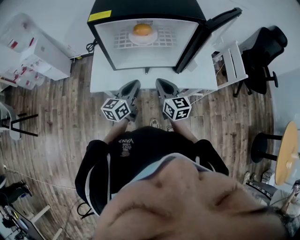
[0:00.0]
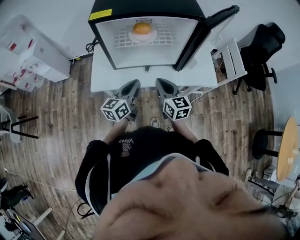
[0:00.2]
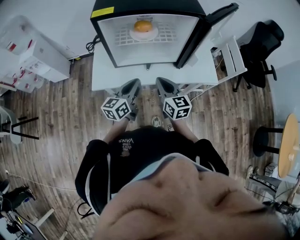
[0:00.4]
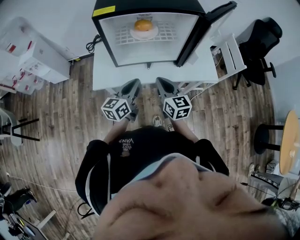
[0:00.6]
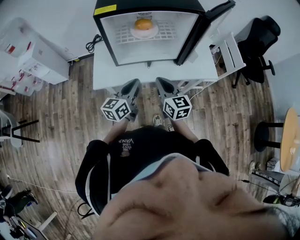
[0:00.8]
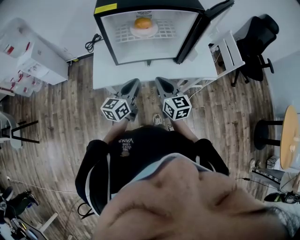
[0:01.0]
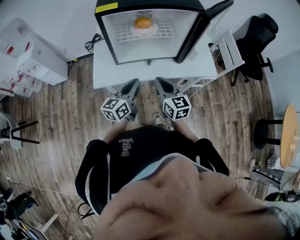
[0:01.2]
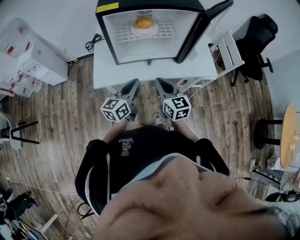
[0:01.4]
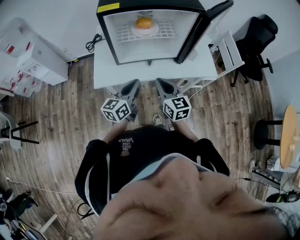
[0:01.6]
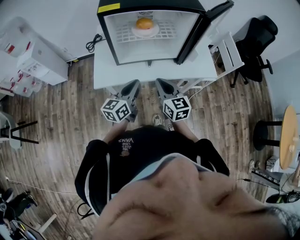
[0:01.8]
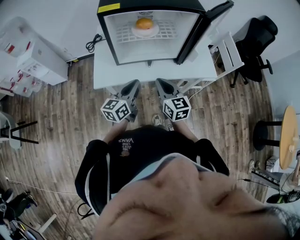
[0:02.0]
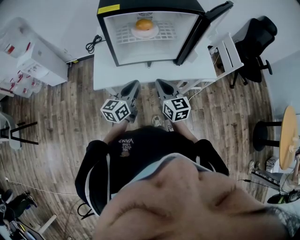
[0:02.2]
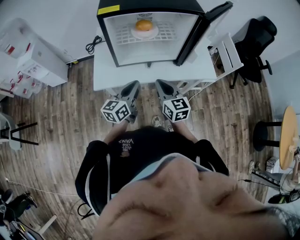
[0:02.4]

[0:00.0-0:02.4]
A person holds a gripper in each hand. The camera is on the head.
0:00.0 to 0:01.2: Both grippers travel together backward, about 5 cm.
0:01.2 to 0:02.4: Both grippers stay put.

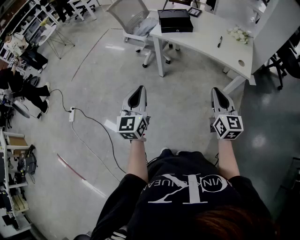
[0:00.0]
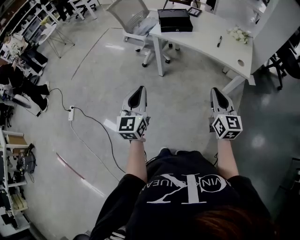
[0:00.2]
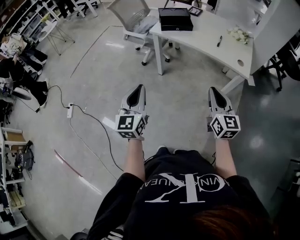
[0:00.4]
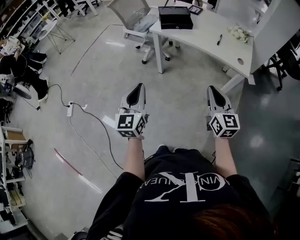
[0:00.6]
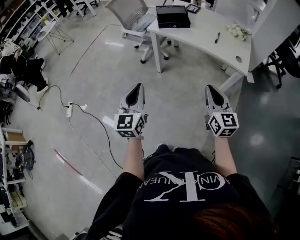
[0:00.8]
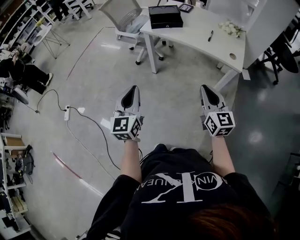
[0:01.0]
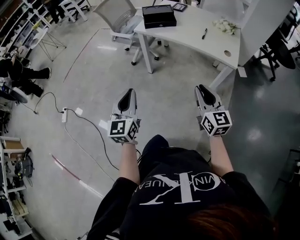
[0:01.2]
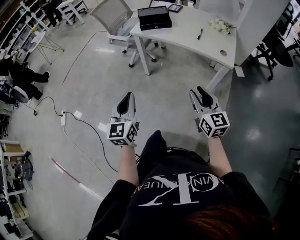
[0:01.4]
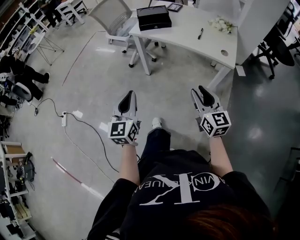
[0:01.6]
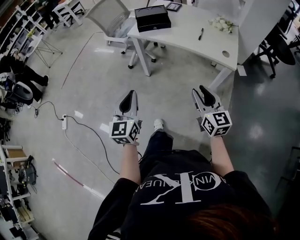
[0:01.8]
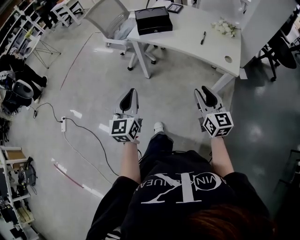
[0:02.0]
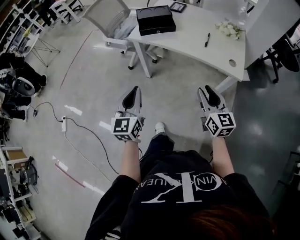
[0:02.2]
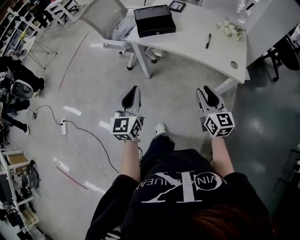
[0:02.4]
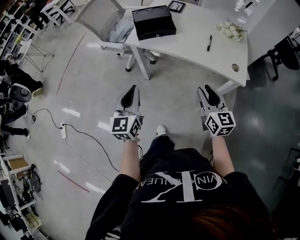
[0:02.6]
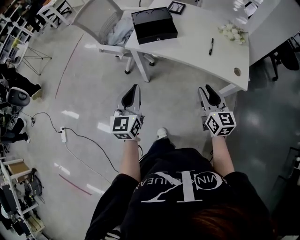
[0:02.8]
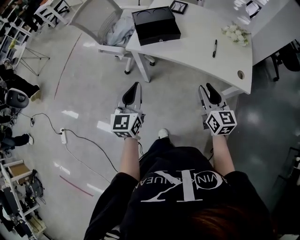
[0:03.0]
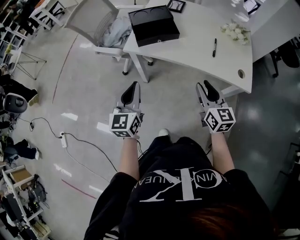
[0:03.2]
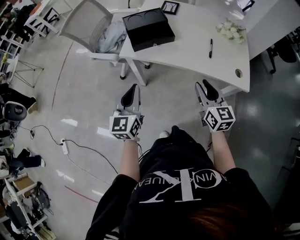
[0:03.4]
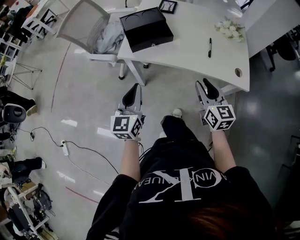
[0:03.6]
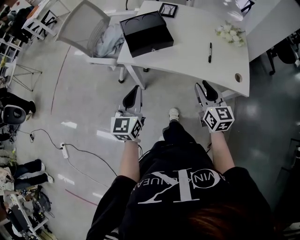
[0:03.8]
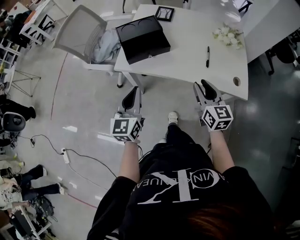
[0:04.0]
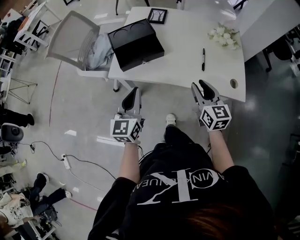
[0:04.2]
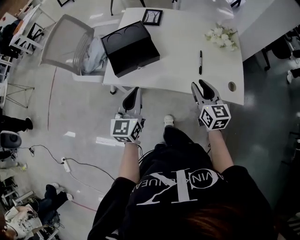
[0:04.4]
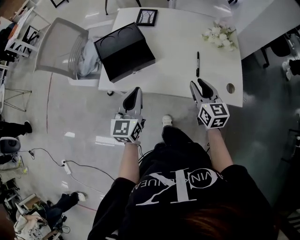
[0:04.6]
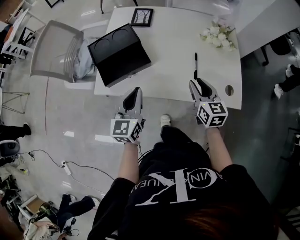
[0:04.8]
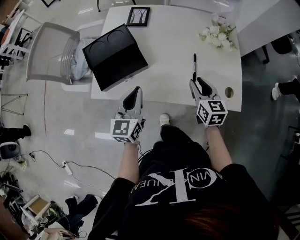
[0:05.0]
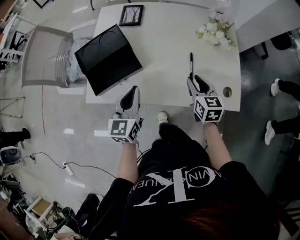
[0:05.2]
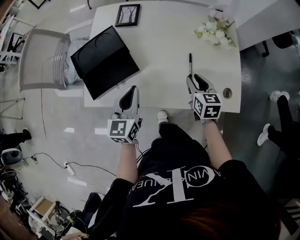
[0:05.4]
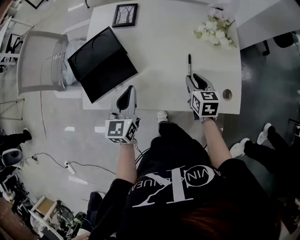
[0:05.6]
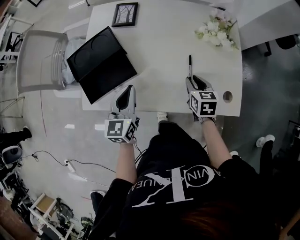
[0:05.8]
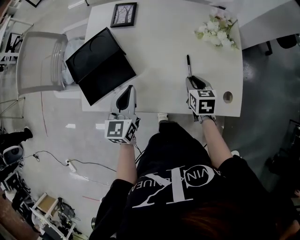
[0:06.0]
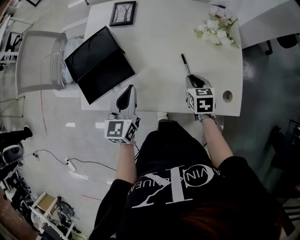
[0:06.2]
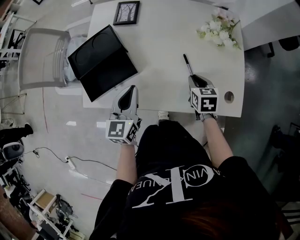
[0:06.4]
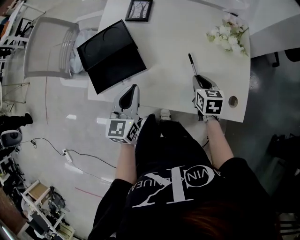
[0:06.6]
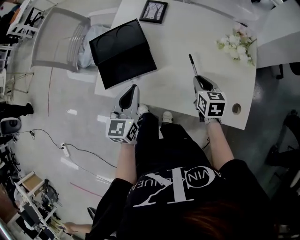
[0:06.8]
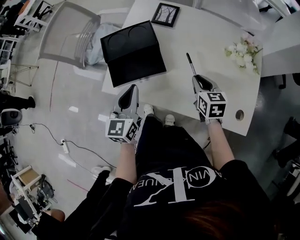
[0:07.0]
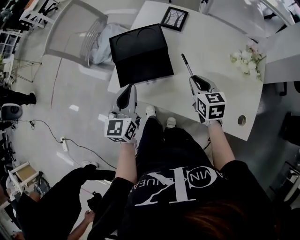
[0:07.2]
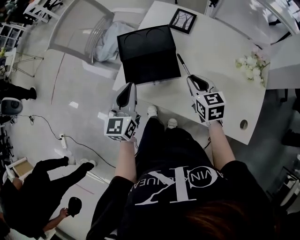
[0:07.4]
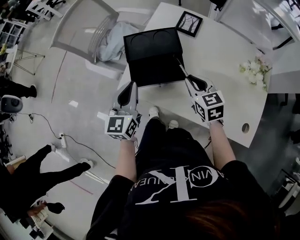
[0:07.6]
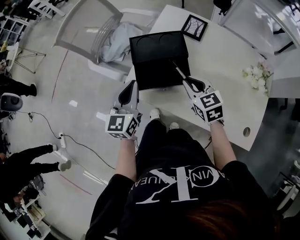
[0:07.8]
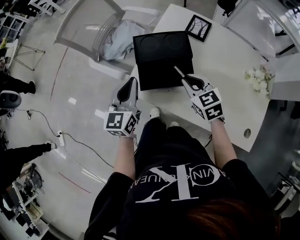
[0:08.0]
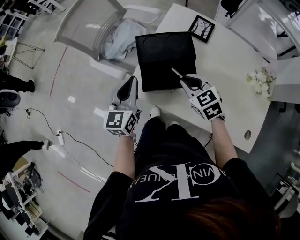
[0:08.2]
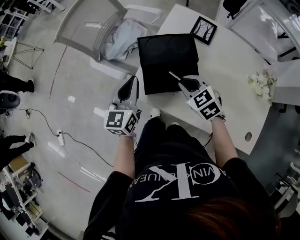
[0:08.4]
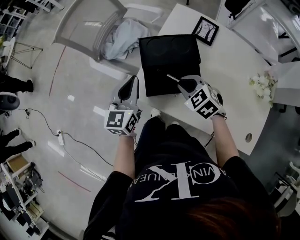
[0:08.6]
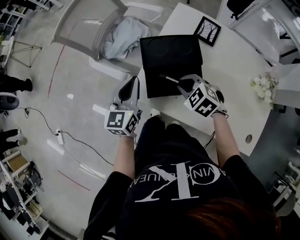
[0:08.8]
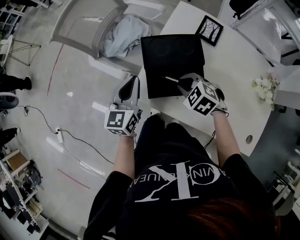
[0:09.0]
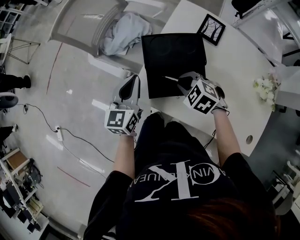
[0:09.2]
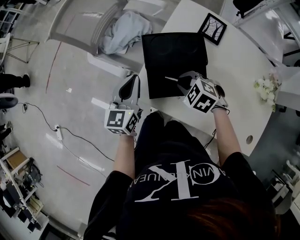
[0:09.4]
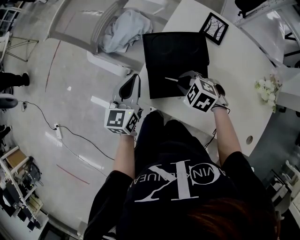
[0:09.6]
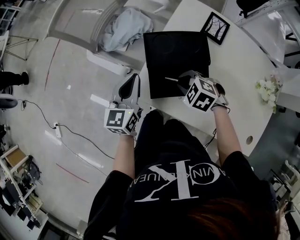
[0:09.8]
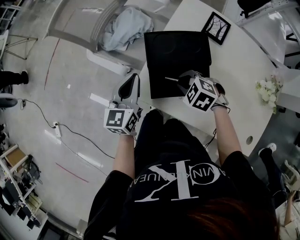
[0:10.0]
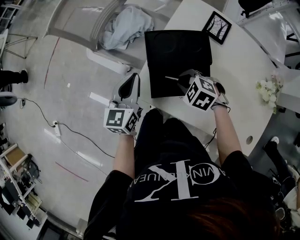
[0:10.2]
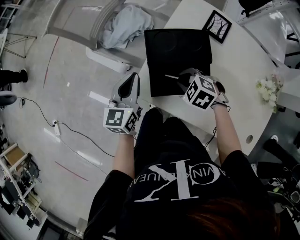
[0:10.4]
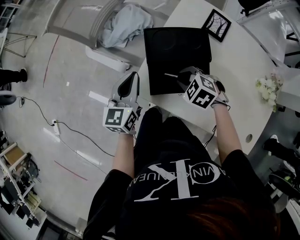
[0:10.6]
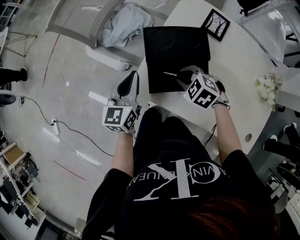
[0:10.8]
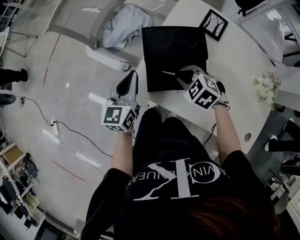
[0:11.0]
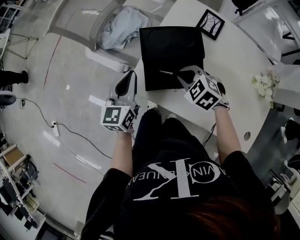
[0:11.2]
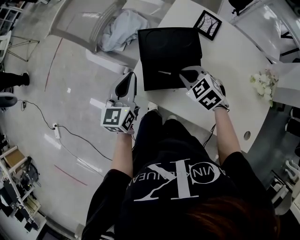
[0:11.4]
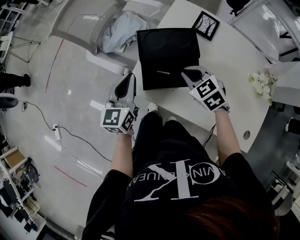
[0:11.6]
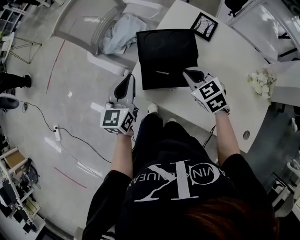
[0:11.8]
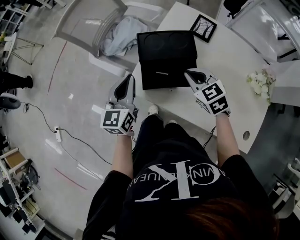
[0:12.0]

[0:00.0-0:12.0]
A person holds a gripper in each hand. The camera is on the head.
0:00.0 to 0:01.6: The right gripper shifts by about 5 cm, and opens up. Meanwhile the left gripper heads to the right, covering approximately 5 cm.
0:01.6 to 0:03.0: Both grippers travel together forward, some 30 cm.
0:03.0 to 0:04.4: The left gripper goes approximately 20 cm forward and to the right. Meanwhile the right gripper travels forward by approximately 15 cm.
0:04.4 to 0:06.0: The right gripper travels forward, downward and to the right by roughly 20 cm, and angles its fingers downward, by approximately 30 degrees. The left gripper shifts approximately 15 cm forward and to the right.
0:06.0 to 0:07.6: The right gripper ends up roughly 25 cm from where it was, and turns by some 40 degrees; the left gripper ends up roughly 20 cm from where it was, and rotates approximately 20 degrees.
0:07.6 to 0:09.0: The right gripper travels to the left, forward and downward by some 15 cm, and swivels roughly 50 degrees. Meanwhile the left gripper is displaced forward by approximately 10 cm.
0:09.0 to 0:10.4: The grippers stay close to where they were, moving slightly.
0:10.4 to 0:12.0: The left gripper changes place by some 5 cm; the right gripper shifts some 10 cm upward and to the right, and turns by about 40 degrees.

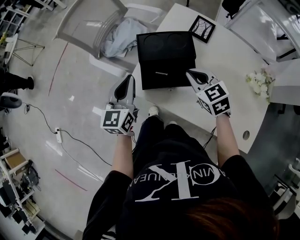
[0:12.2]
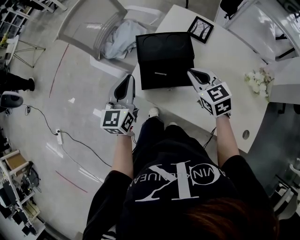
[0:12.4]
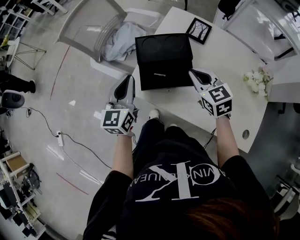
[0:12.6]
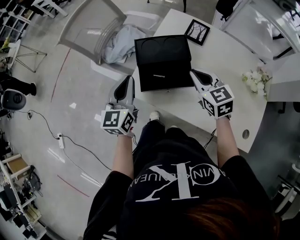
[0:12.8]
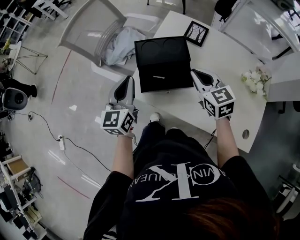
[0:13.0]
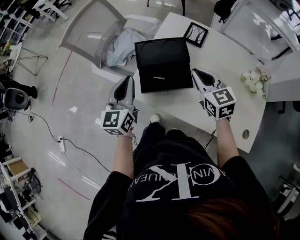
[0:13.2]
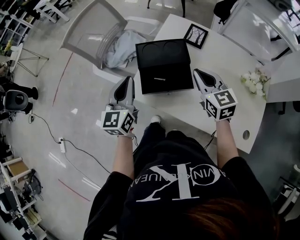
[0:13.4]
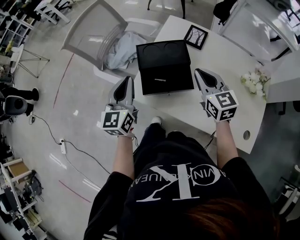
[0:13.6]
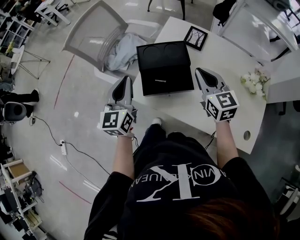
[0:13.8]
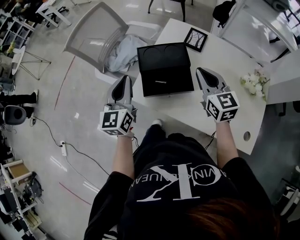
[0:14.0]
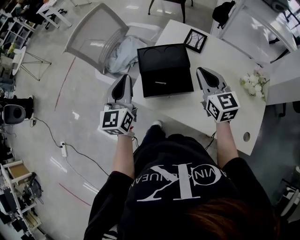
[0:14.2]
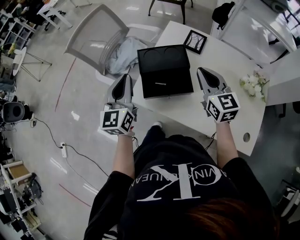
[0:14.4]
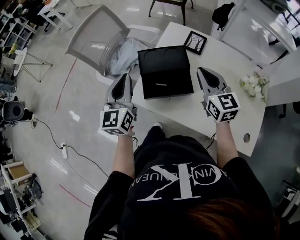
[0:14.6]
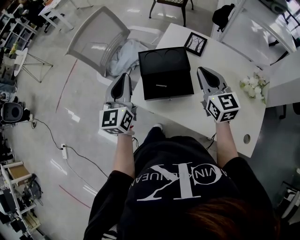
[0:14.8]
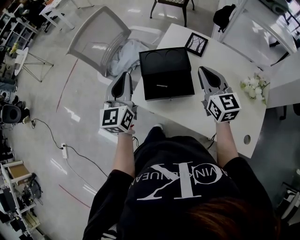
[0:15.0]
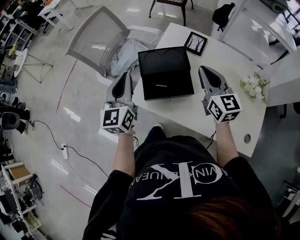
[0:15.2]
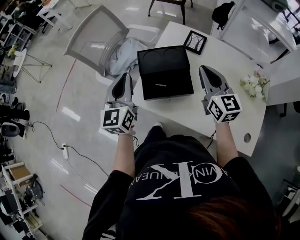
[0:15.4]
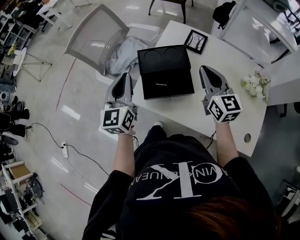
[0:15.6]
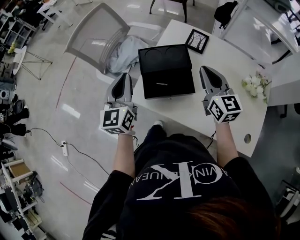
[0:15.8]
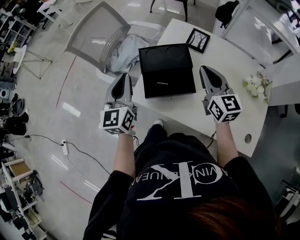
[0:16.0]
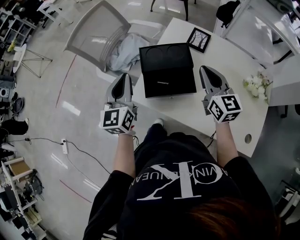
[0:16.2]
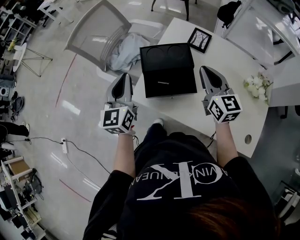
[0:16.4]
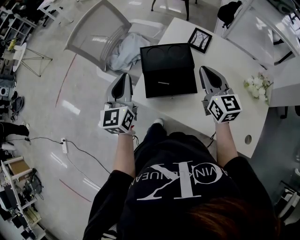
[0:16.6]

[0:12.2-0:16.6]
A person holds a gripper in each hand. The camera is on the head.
0:12.2 to 0:13.6: The right gripper is displaced upward by about 5 cm, and swivels roughly 20 degrees.
0:13.6 to 0:16.6: There are only small adjustments of the grippers.

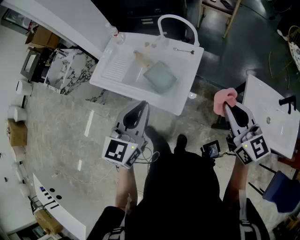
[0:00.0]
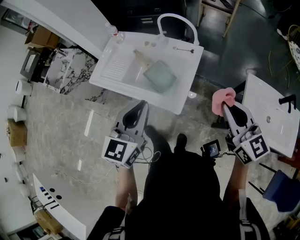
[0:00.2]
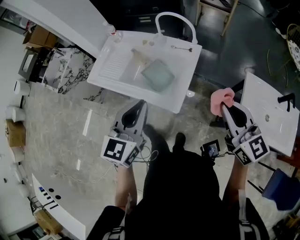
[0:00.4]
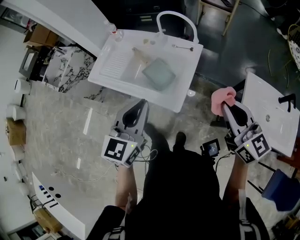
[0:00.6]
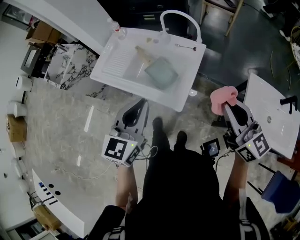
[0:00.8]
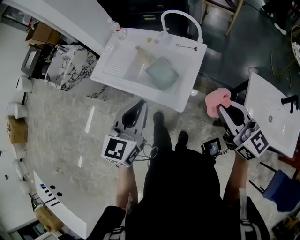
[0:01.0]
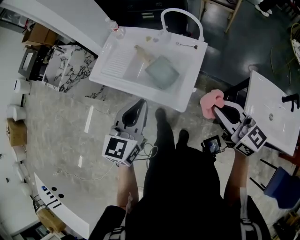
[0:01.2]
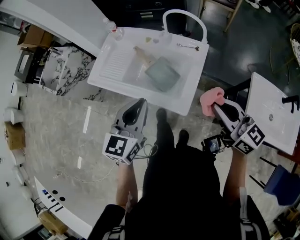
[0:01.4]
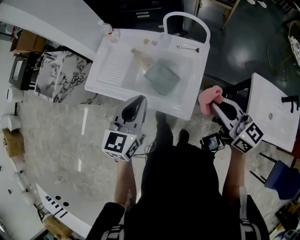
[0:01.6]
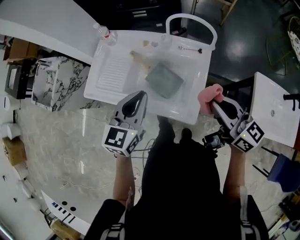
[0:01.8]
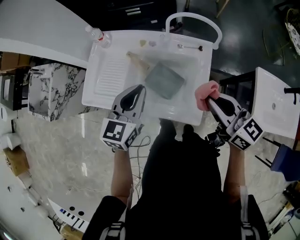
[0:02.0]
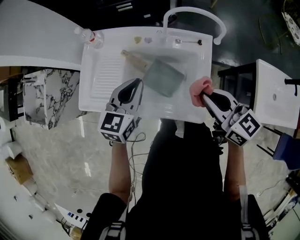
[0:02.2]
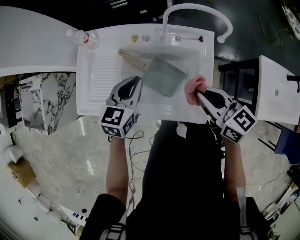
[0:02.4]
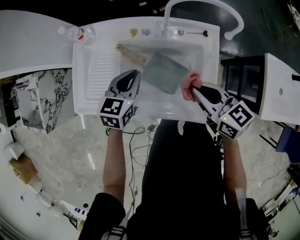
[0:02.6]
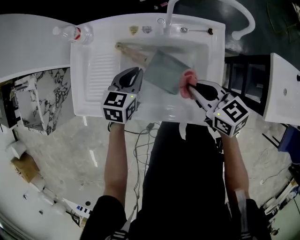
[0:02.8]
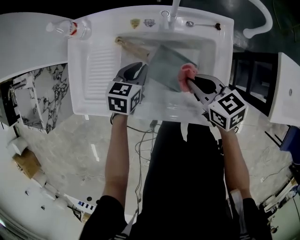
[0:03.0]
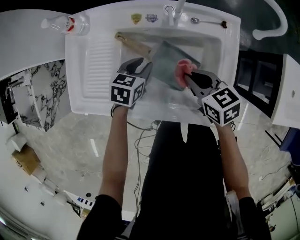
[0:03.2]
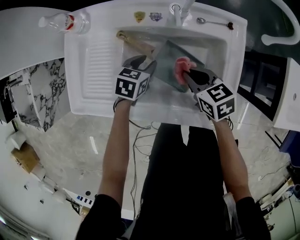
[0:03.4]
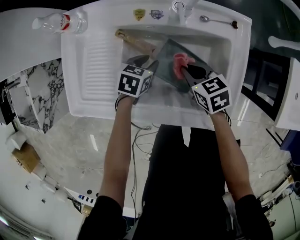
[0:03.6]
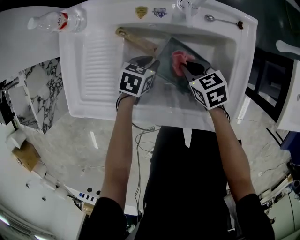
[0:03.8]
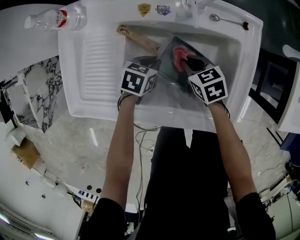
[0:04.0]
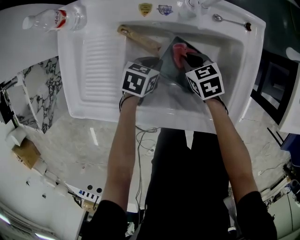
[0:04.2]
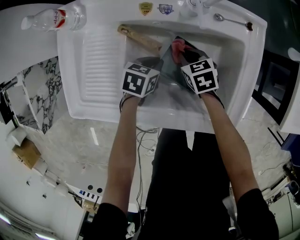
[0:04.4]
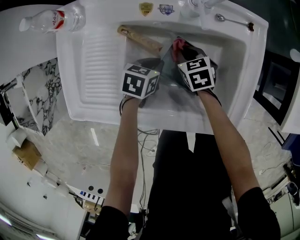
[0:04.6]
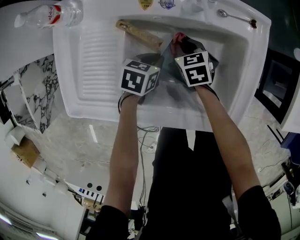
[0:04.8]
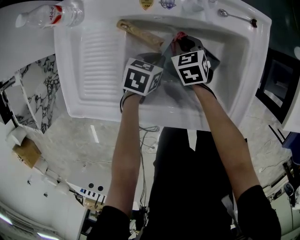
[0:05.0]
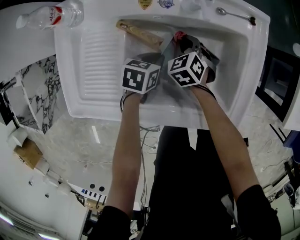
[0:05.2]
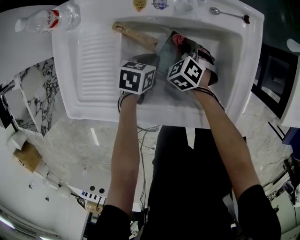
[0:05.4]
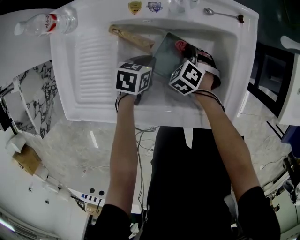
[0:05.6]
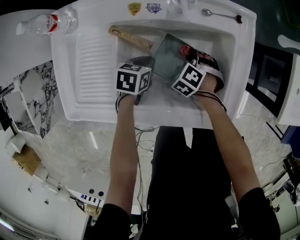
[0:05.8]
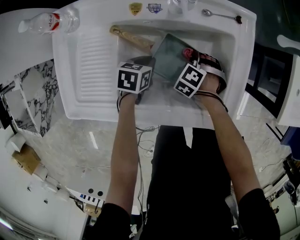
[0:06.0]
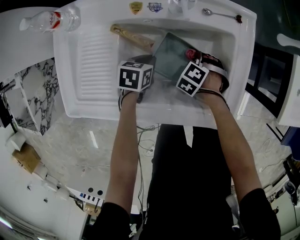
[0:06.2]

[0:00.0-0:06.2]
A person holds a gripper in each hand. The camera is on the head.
0:00.0 to 0:01.6: The right gripper heads to the left, forward and downward, covering approximately 15 cm, while the left gripper moves forward, to the left and downward, about 15 cm.
0:01.6 to 0:03.2: The left gripper shifts approximately 40 cm downward and forward, and tilts its fingers some 30 degrees downward. The right gripper heads downward, forward and to the left, covering about 40 cm, and points its fingers approximately 30 degrees further downward.
0:03.2 to 0:04.6: The left gripper heads downward, covering approximately 10 cm, while the right gripper is displaced downward and forward by approximately 20 cm.
0:04.6 to 0:06.2: The right gripper ends up roughly 10 cm from where it was, and changes its angle by roughly 60 degrees.
